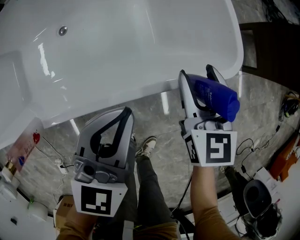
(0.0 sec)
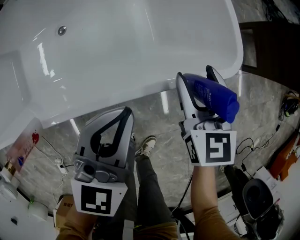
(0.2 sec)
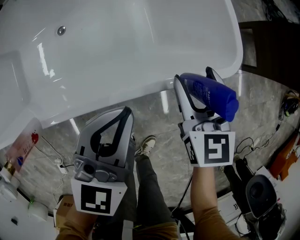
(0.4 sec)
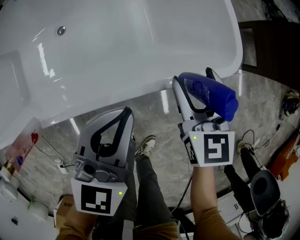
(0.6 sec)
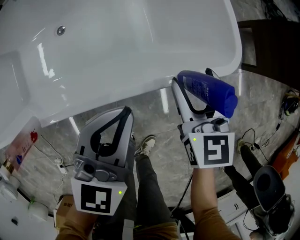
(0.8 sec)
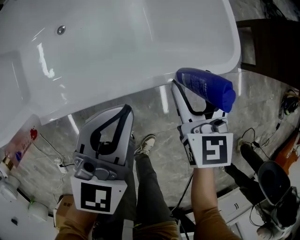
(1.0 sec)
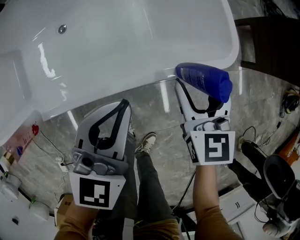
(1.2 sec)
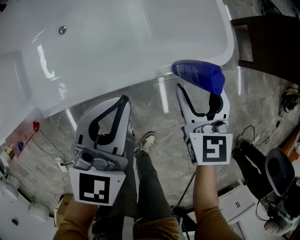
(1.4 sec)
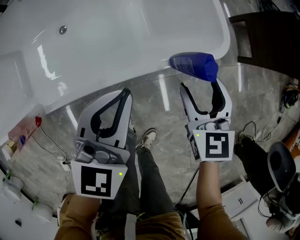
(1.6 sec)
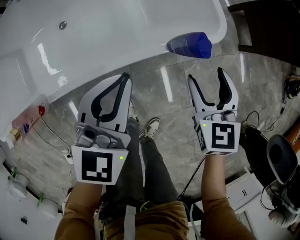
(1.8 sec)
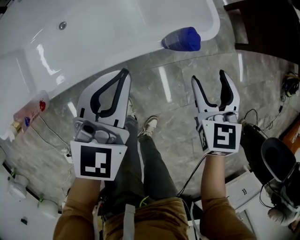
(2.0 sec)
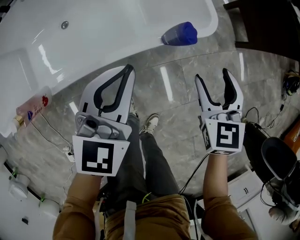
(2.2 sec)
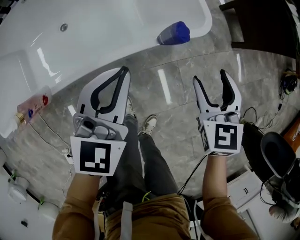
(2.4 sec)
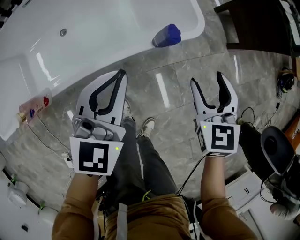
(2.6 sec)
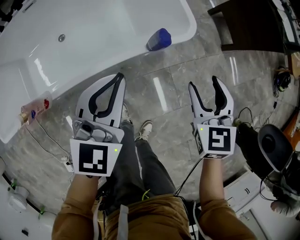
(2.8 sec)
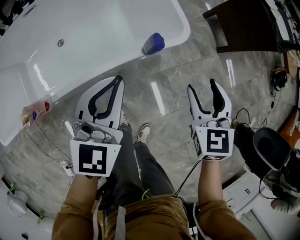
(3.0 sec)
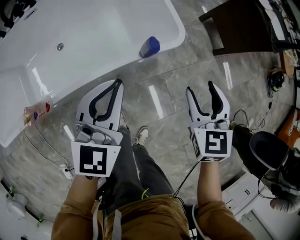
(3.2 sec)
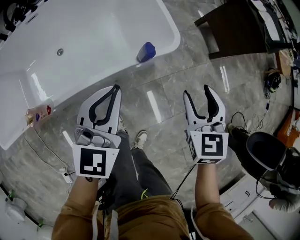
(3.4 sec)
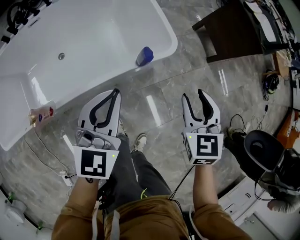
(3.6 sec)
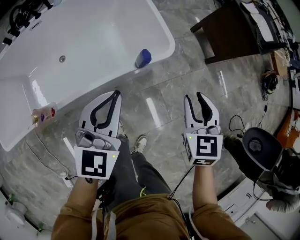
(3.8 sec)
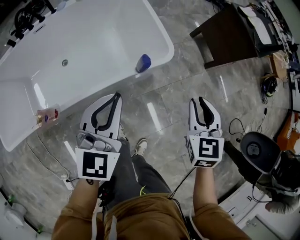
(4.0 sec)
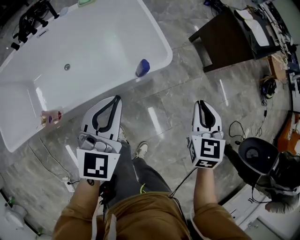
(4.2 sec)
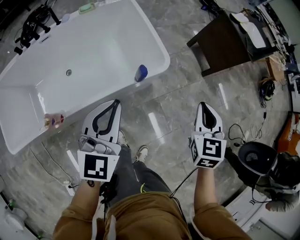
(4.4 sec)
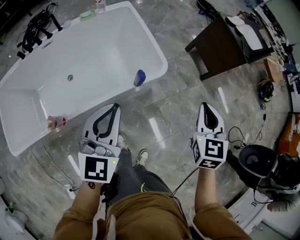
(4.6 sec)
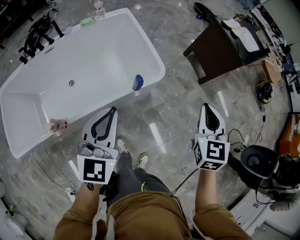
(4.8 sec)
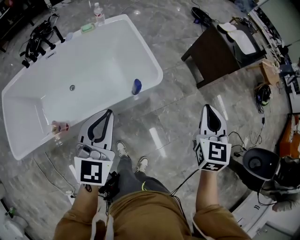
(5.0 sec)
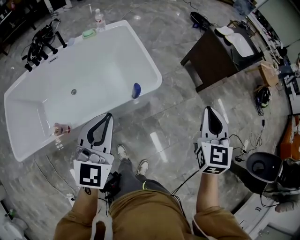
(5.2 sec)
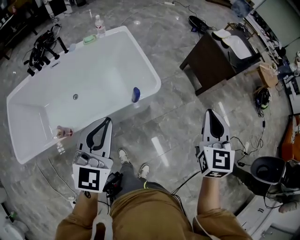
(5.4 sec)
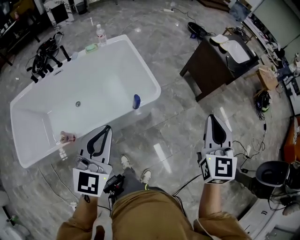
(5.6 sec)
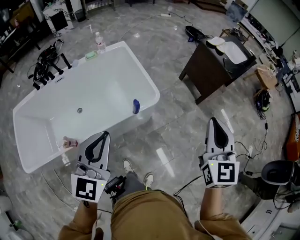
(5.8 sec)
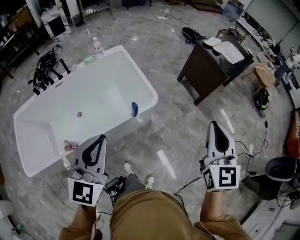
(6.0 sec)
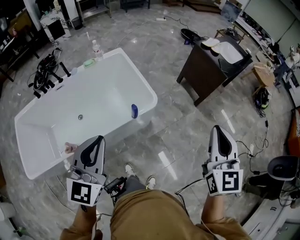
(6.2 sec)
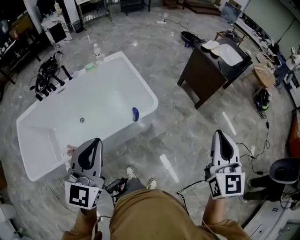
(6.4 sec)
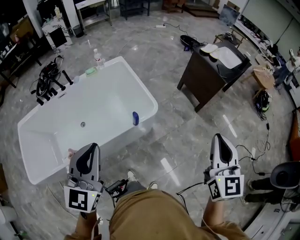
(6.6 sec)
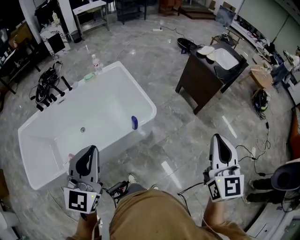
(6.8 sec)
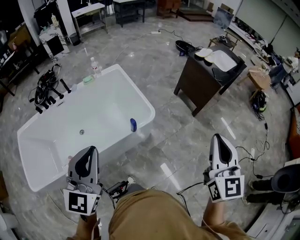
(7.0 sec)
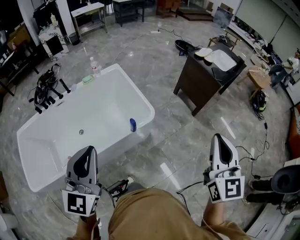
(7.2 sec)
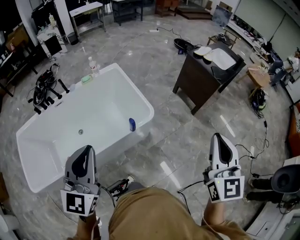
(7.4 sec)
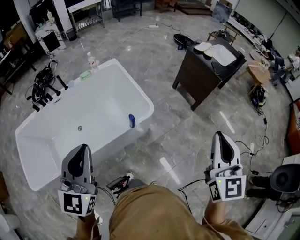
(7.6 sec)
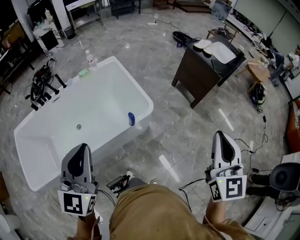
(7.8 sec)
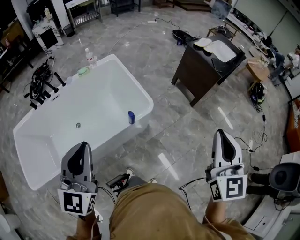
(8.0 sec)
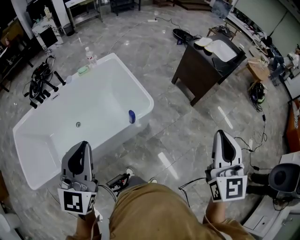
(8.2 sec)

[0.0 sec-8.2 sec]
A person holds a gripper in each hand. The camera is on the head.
0.0 sec to 1.6 sec: The right gripper shifts approximately 10 cm backward and to the right.
1.6 sec to 3.2 sec: The left gripper moves upward, roughly 10 cm; the right gripper travels upward and to the right by some 20 cm.
3.2 sec to 5.0 sec: The left gripper is displaced upward and backward by roughly 20 cm; the right gripper heads upward and to the right, covering some 25 cm, and closes up.
5.0 sec to 6.6 sec: The right gripper heads upward, backward and to the right, covering roughly 20 cm, while the left gripper shifts approximately 15 cm upward and backward.
6.6 sec to 8.2 sec: The grippers stay close to where they were, moving slightly.

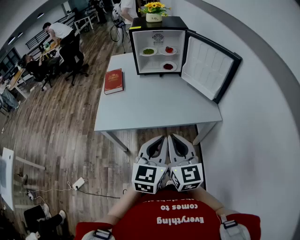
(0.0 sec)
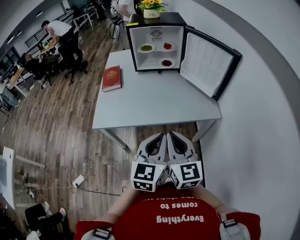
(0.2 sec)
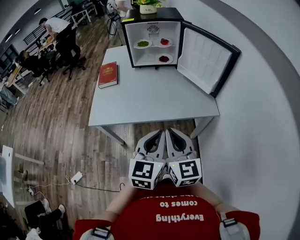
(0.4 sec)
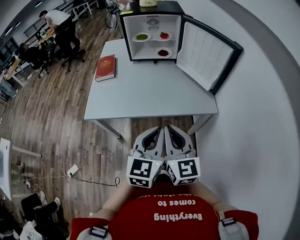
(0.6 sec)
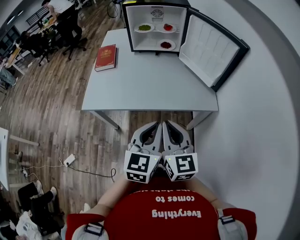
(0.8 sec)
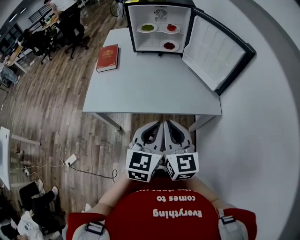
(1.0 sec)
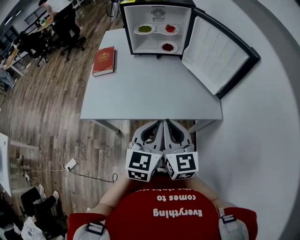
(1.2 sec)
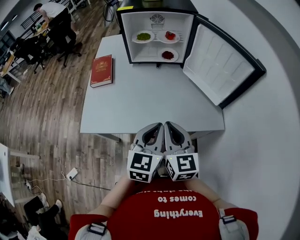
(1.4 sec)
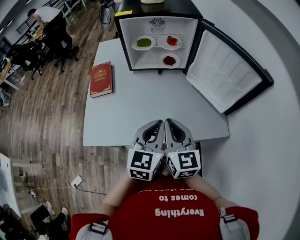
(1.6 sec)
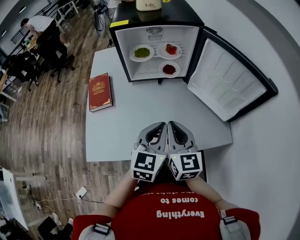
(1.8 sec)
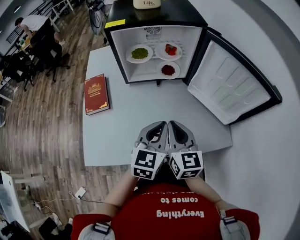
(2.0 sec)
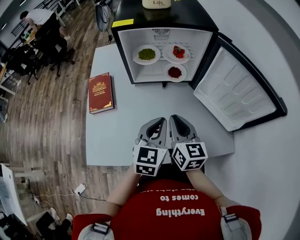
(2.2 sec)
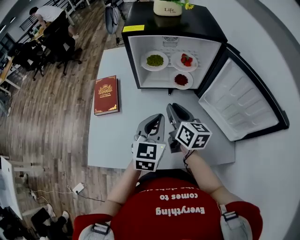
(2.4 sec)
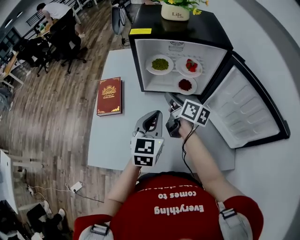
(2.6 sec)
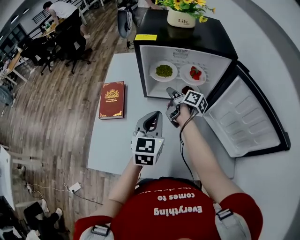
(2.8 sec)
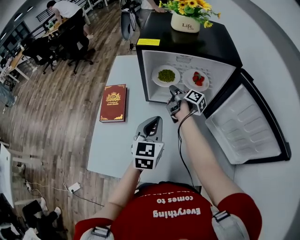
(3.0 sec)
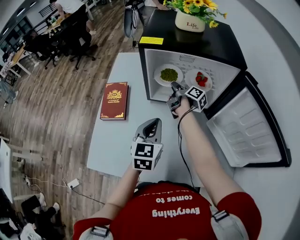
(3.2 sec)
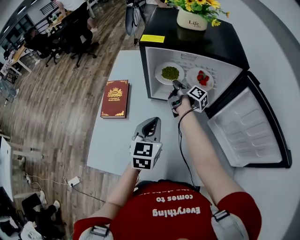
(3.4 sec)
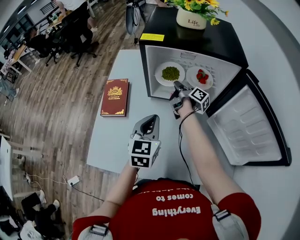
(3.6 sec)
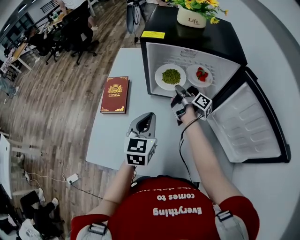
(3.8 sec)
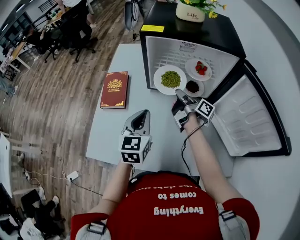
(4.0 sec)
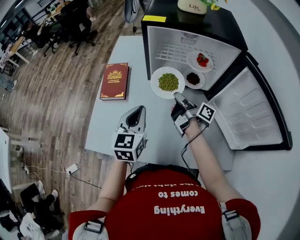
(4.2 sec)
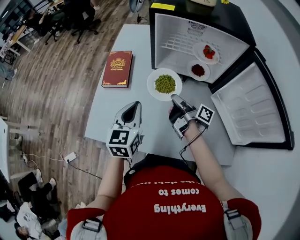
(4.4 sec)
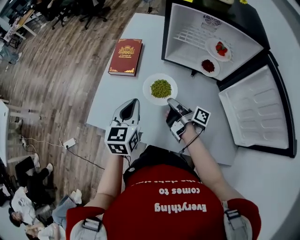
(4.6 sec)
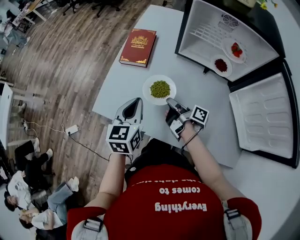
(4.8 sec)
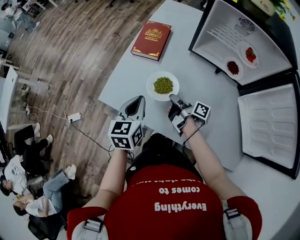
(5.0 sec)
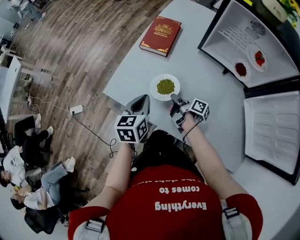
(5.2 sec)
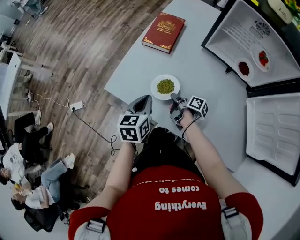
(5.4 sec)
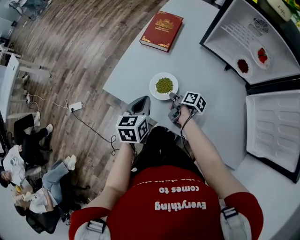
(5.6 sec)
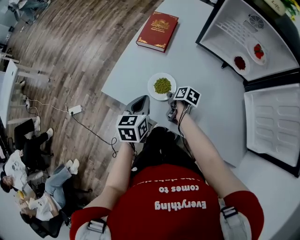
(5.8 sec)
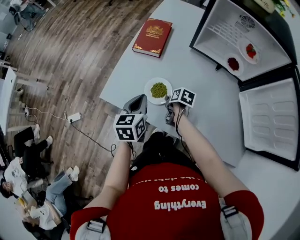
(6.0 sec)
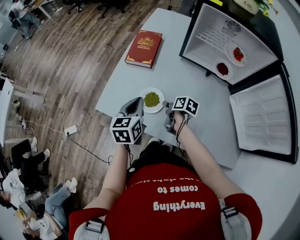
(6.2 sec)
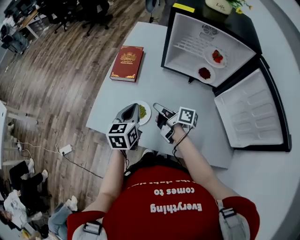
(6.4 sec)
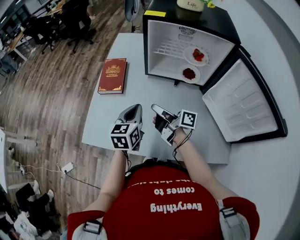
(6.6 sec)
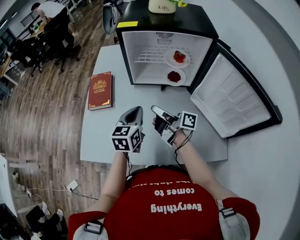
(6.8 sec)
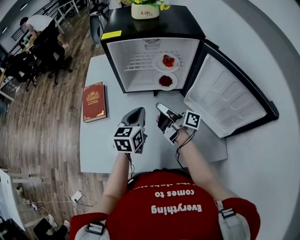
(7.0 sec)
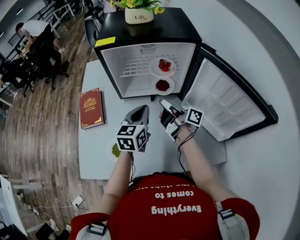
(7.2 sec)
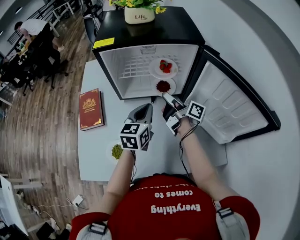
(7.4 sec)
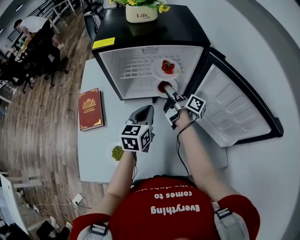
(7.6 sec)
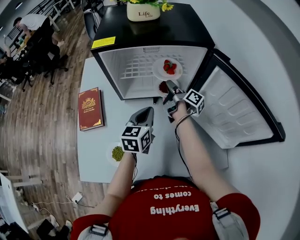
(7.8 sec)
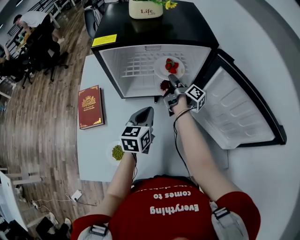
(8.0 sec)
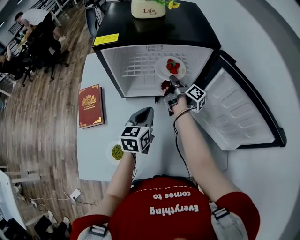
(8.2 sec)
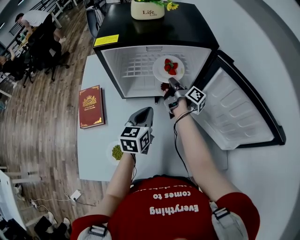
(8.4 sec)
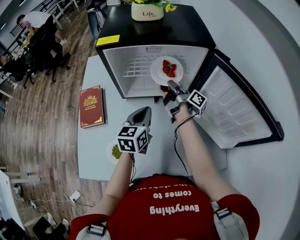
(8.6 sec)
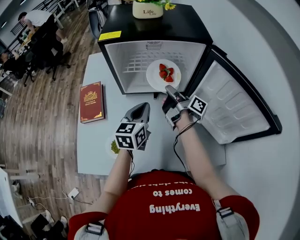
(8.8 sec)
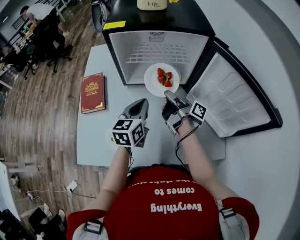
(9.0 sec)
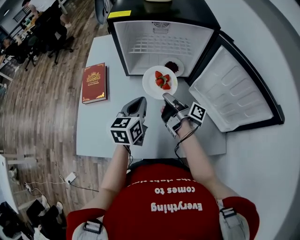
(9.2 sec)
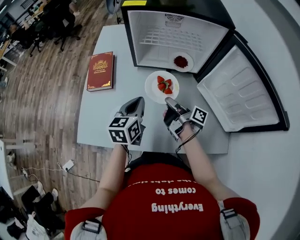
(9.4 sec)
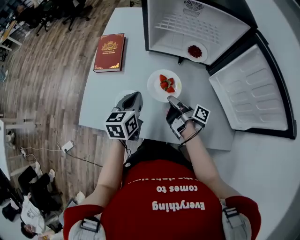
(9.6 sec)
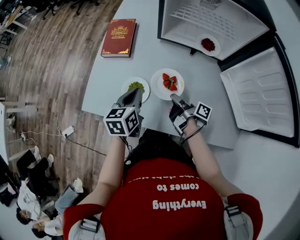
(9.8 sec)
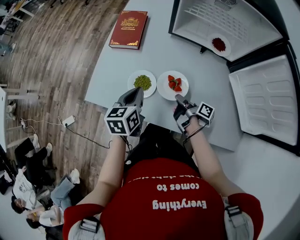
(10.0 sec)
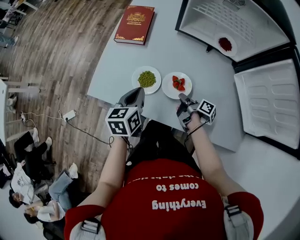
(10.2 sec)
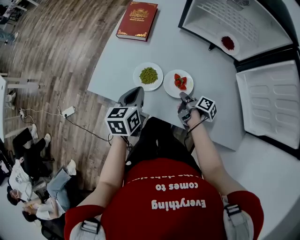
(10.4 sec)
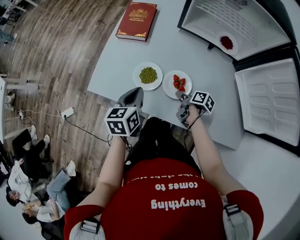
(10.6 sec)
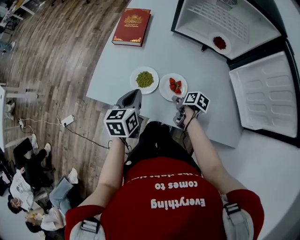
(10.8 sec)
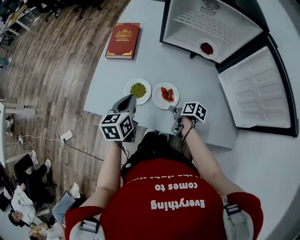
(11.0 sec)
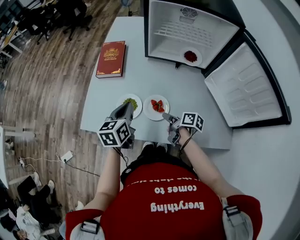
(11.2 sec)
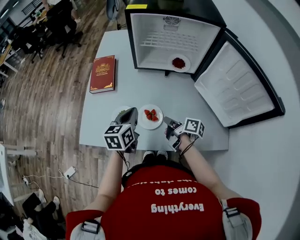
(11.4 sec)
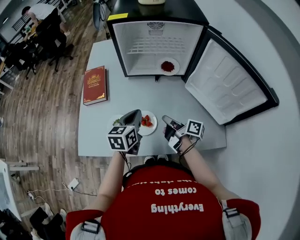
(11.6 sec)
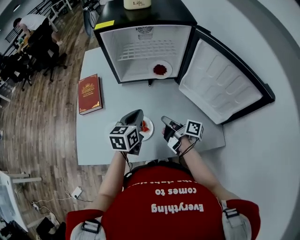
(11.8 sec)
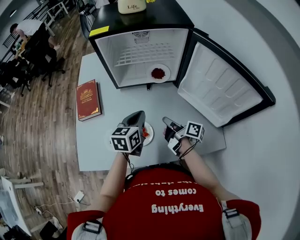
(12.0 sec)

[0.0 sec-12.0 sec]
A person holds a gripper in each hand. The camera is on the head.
0.0 sec to 1.6 sec: The left gripper changes place by some 30 cm.
1.6 sec to 3.0 sec: The left gripper changes place by about 25 cm.
3.0 sec to 4.4 sec: The left gripper changes place by about 15 cm.
4.4 sec to 6.0 sec: The left gripper shifts by some 20 cm, and swivels approximately 20 degrees.
6.0 sec to 7.6 sec: The left gripper moves roughly 35 cm, and rotates some 40 degrees.
7.6 sec to 9.0 sec: The left gripper moves about 5 cm.
9.0 sec to 10.4 sec: The left gripper moves roughly 30 cm, and rotates roughly 30 degrees.
10.4 sec to 12.0 sec: The left gripper moves roughly 25 cm, and swivels some 30 degrees.

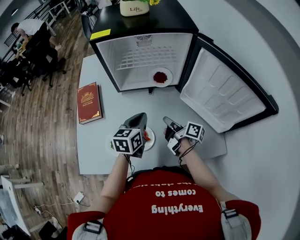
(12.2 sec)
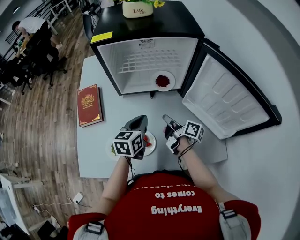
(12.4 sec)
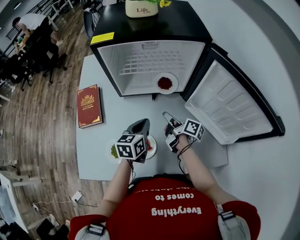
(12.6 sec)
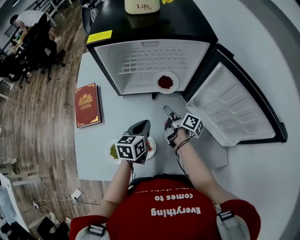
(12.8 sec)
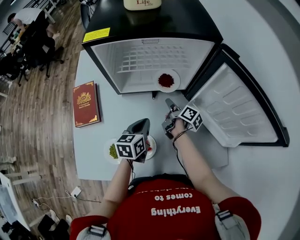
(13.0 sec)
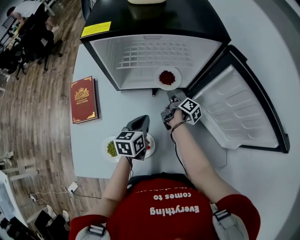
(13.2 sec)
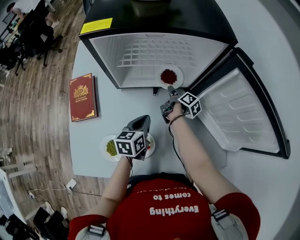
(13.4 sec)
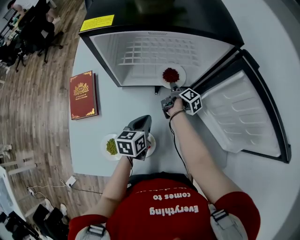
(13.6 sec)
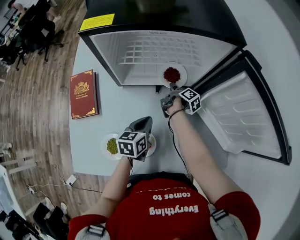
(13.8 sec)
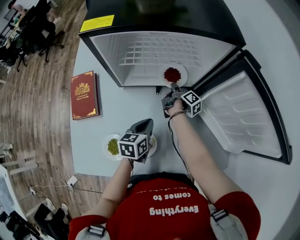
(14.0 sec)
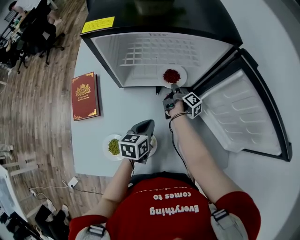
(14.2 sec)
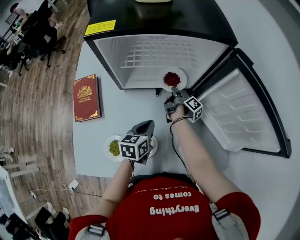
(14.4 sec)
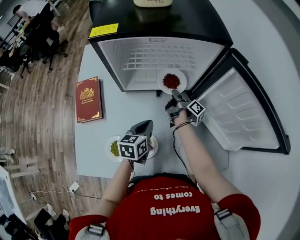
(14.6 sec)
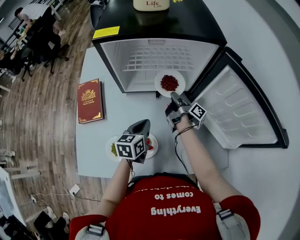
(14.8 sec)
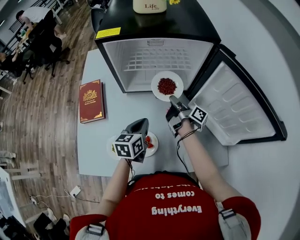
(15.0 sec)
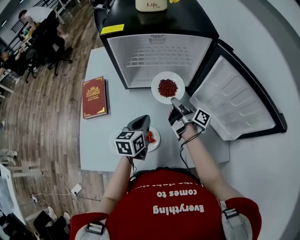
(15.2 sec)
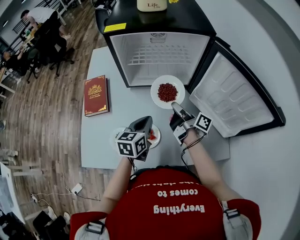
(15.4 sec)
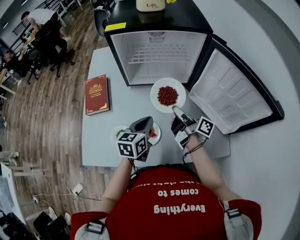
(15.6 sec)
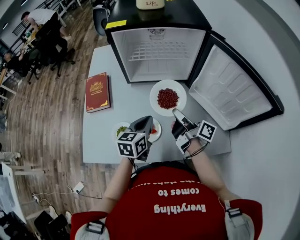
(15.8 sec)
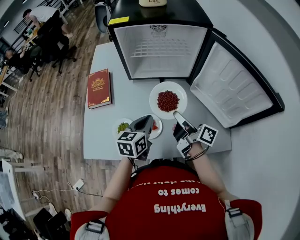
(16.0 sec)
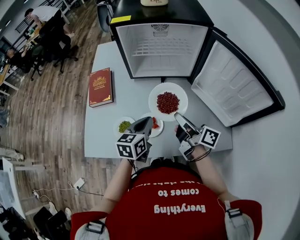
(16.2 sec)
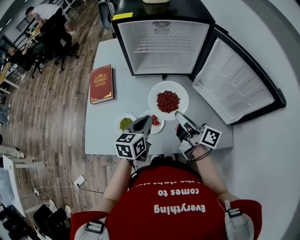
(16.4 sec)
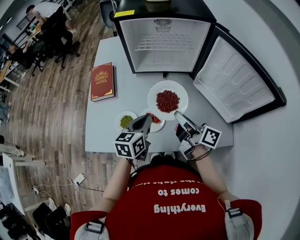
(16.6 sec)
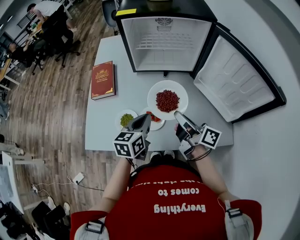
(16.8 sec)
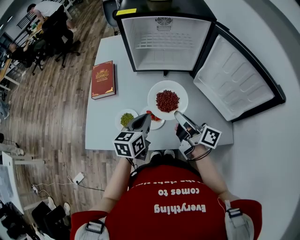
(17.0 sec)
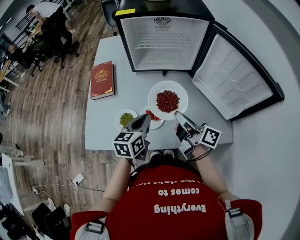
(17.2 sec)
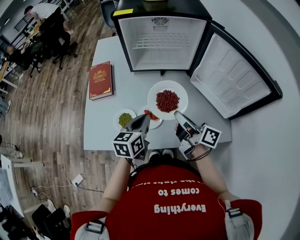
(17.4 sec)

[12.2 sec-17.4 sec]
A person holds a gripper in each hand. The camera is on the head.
12.2 sec to 14.0 sec: The left gripper travels downward by approximately 10 cm.
14.0 sec to 15.6 sec: The left gripper travels upward by approximately 10 cm.
15.6 sec to 17.4 sec: The left gripper moves roughly 10 cm.
